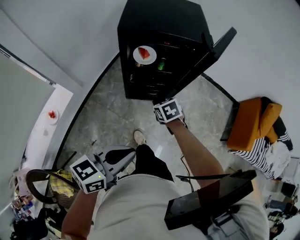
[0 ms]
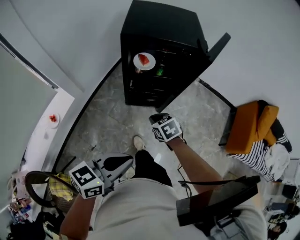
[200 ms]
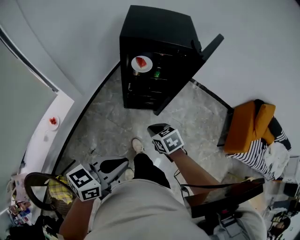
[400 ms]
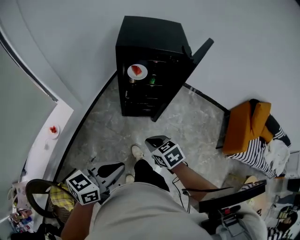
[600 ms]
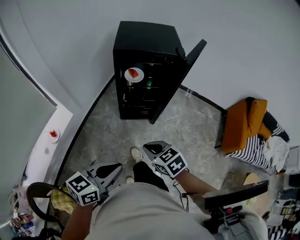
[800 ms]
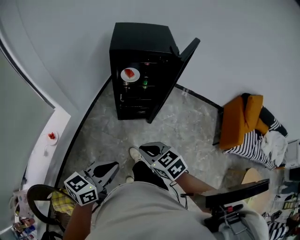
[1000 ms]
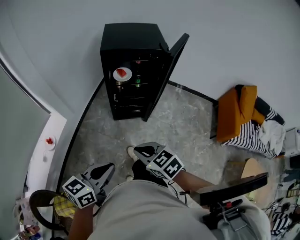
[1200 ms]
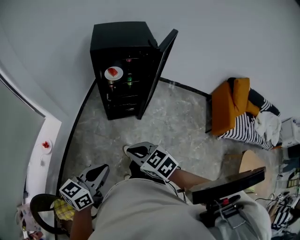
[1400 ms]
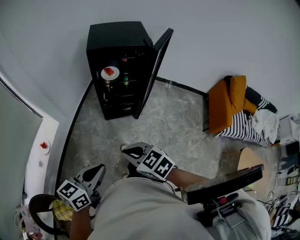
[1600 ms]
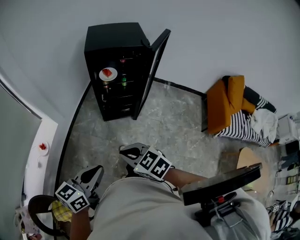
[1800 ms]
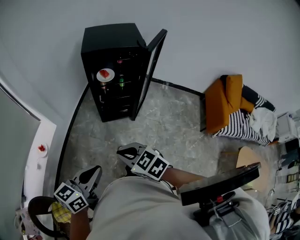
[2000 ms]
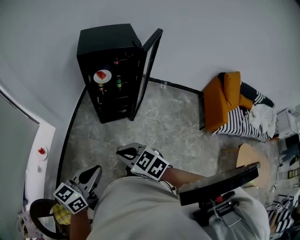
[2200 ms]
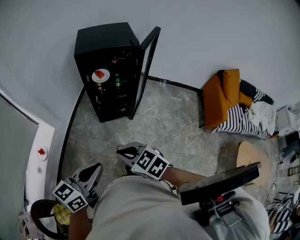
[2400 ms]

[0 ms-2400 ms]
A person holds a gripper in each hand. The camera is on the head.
0 ms to 1200 ms: The left gripper moves about 15 cm.

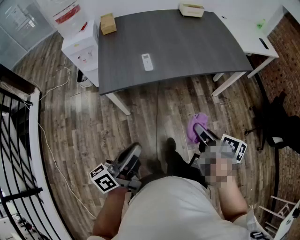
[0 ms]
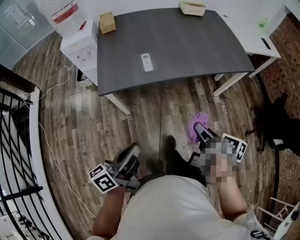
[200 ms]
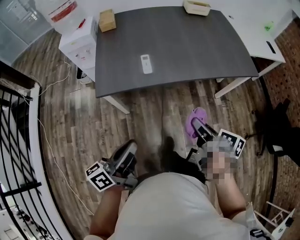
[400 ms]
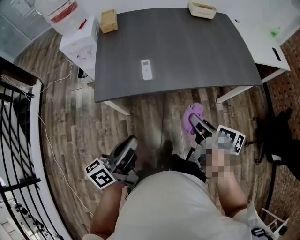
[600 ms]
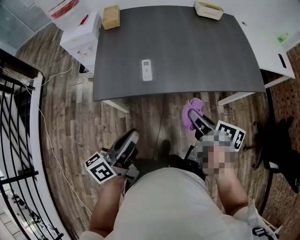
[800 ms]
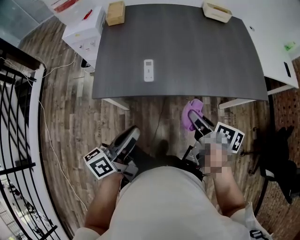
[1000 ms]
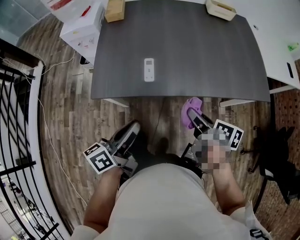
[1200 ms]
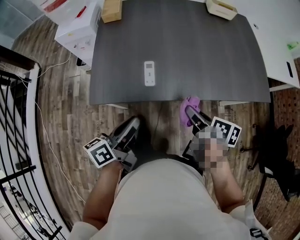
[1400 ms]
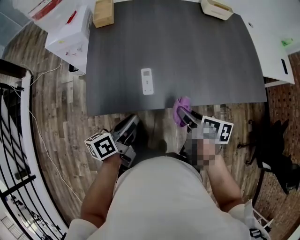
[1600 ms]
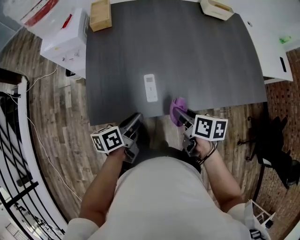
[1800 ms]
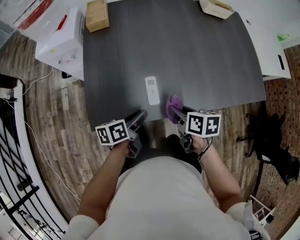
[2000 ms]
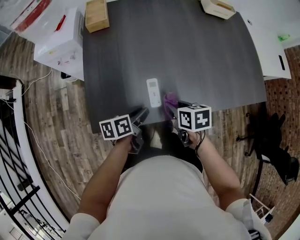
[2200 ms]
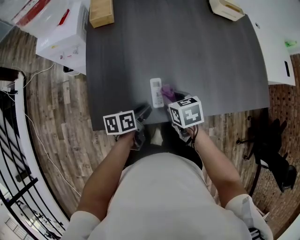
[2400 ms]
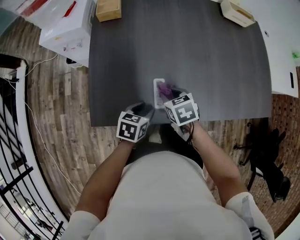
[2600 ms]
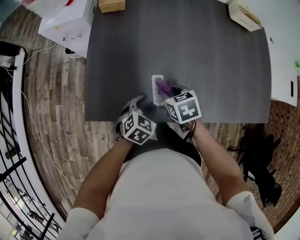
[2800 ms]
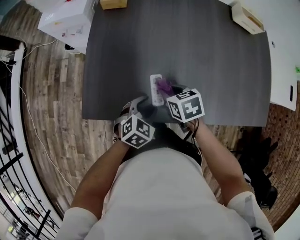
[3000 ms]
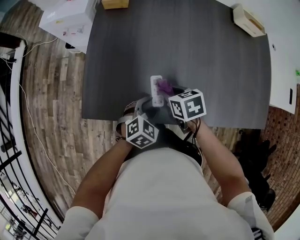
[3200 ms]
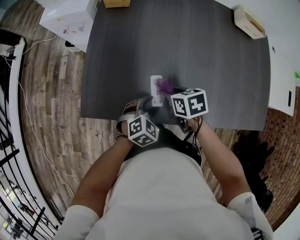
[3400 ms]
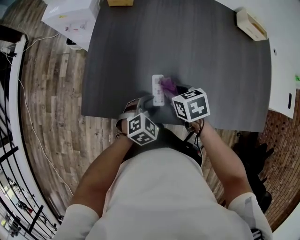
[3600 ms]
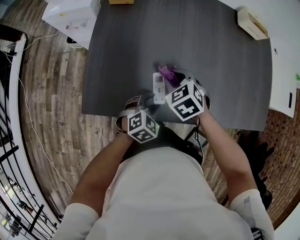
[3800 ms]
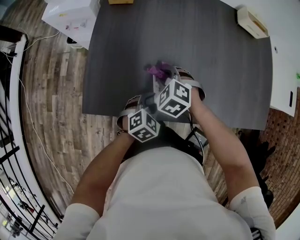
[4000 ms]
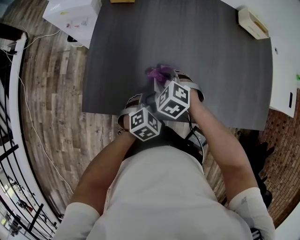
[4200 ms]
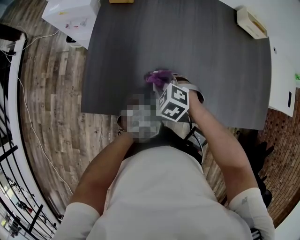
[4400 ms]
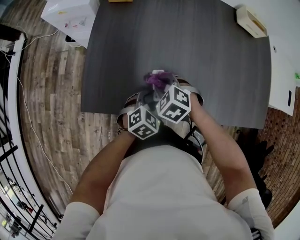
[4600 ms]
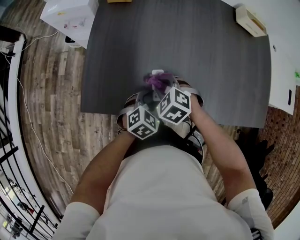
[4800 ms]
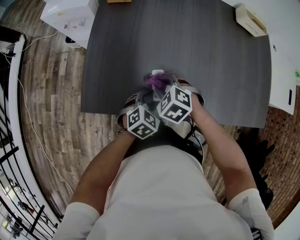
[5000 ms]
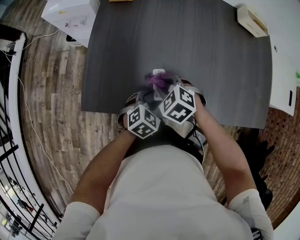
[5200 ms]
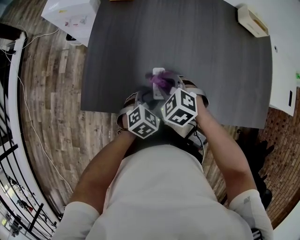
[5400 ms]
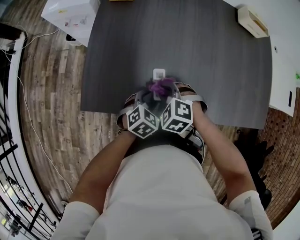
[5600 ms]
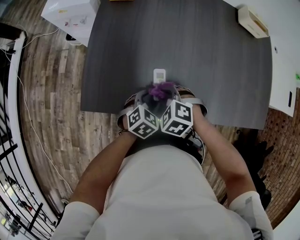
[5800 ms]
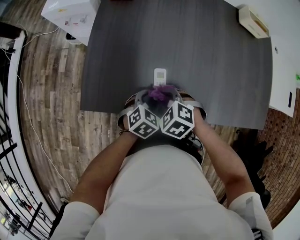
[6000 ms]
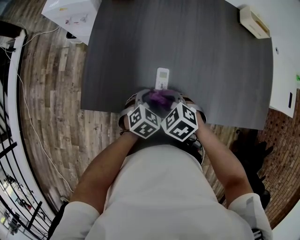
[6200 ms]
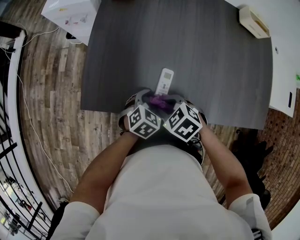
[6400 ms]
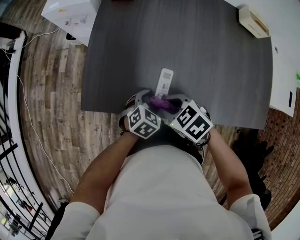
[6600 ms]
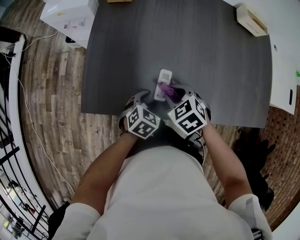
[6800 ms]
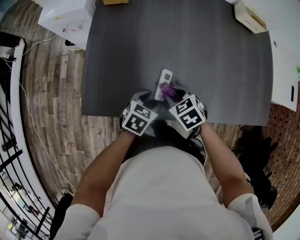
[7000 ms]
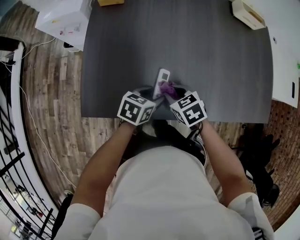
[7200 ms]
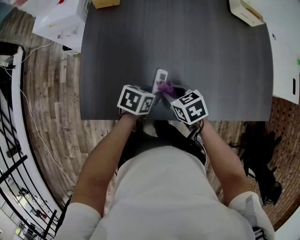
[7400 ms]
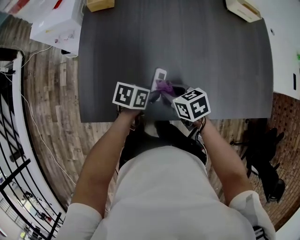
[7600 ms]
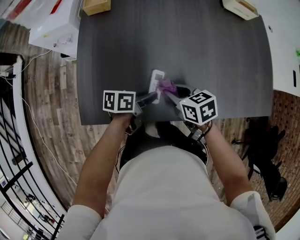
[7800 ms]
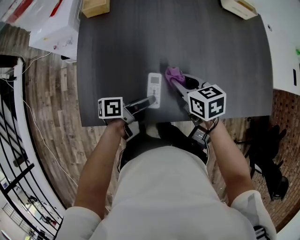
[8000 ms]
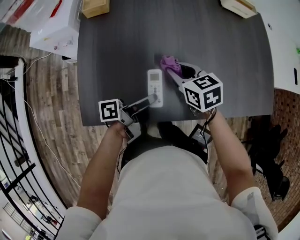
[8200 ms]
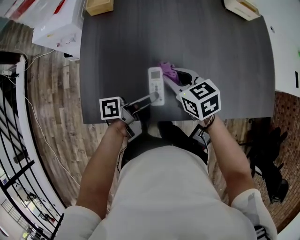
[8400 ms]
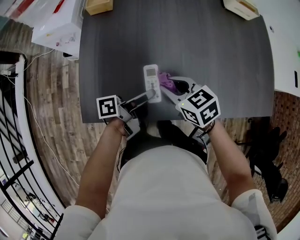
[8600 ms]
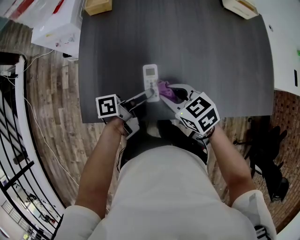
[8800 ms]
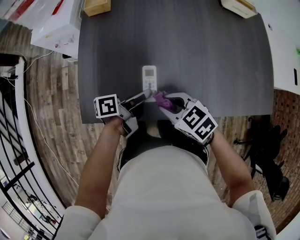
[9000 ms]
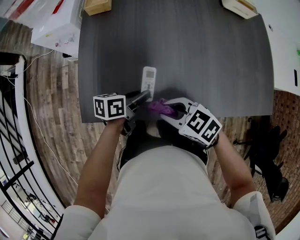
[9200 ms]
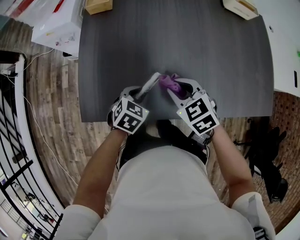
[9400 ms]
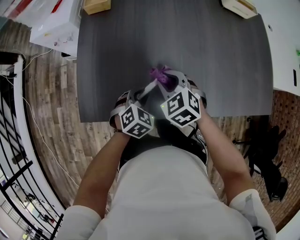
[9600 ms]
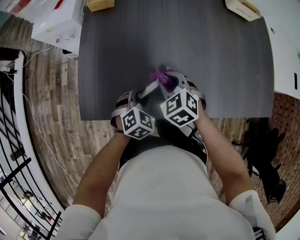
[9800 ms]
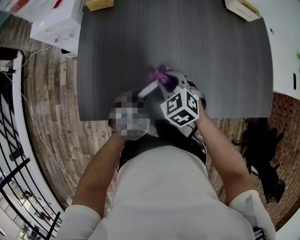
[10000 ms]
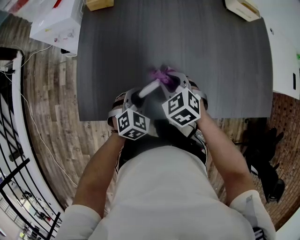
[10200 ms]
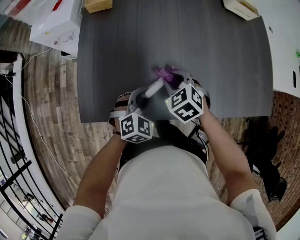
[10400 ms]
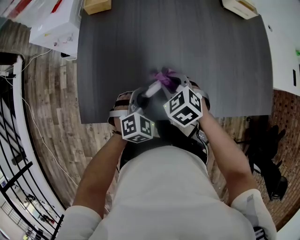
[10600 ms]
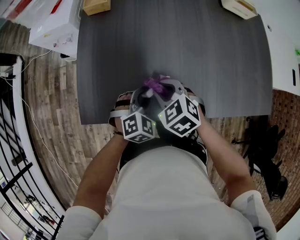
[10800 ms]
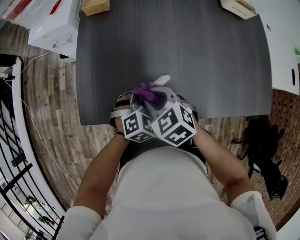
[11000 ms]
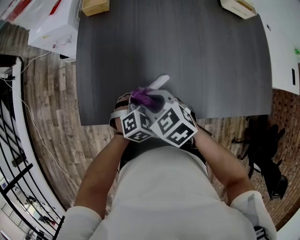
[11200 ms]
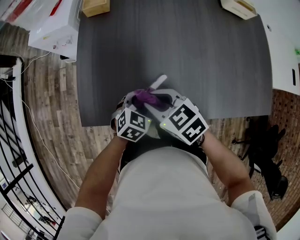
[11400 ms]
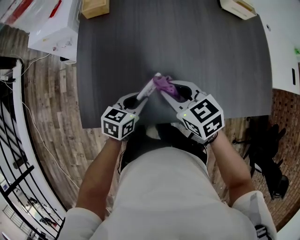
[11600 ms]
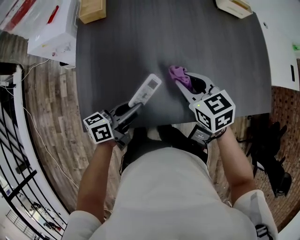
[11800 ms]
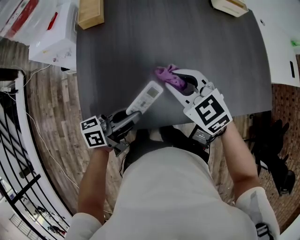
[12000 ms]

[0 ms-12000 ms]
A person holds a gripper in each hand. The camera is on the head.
0 ms to 1600 ms: The grippers both shift forward by about 30 cm. The left gripper swivels about 20 degrees.
1600 ms to 3000 ms: The right gripper heads forward, to the left and downward, covering roughly 20 cm, and twists roughly 40 degrees counterclockwise, seen from behind; the left gripper goes about 15 cm downward, forward and to the right, rotates around the line of its fingers by approximately 60 degrees, clockwise from behind, and opens up.
3000 ms to 4400 ms: The right gripper rolls counterclockwise, seen from behind, by some 50 degrees.
4400 ms to 6000 ms: The right gripper moves backward, roughly 5 cm.
6000 ms to 7600 ms: The left gripper rotates about 50 degrees, and closes up. The right gripper moves about 5 cm, and twists some 50 degrees clockwise, seen from behind.
7600 ms to 9000 ms: Both grippers travel together upward, some 5 cm. The right gripper swivels approximately 20 degrees. The left gripper points its fingers some 30 degrees further upward.
9000 ms to 10400 ms: The left gripper twists approximately 100 degrees clockwise, seen from behind. The right gripper ends up roughly 10 cm from where it was, and rotates approximately 30 degrees.
10400 ms to 12000 ms: The grippers both shift upward by approximately 10 cm. The left gripper angles its fingers upward, by some 40 degrees; the right gripper turns by some 20 degrees.

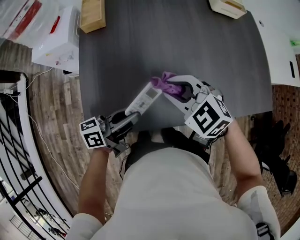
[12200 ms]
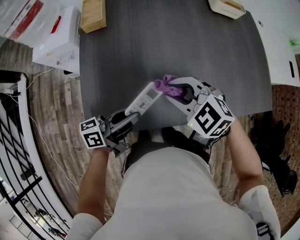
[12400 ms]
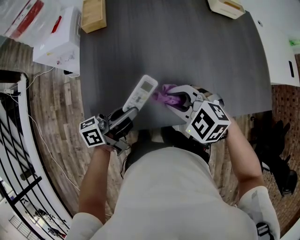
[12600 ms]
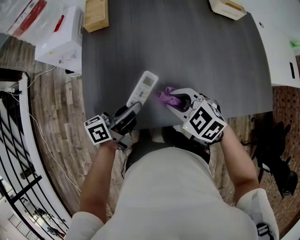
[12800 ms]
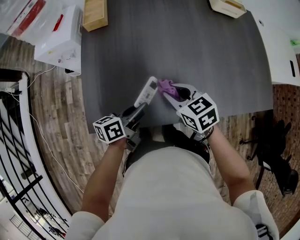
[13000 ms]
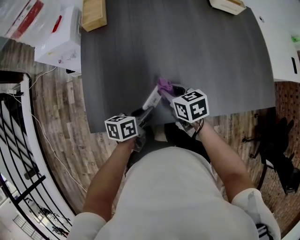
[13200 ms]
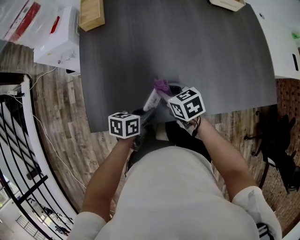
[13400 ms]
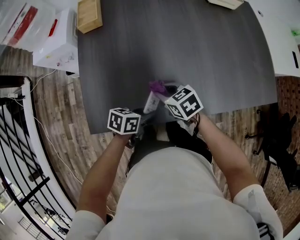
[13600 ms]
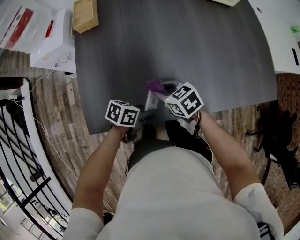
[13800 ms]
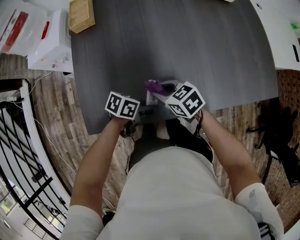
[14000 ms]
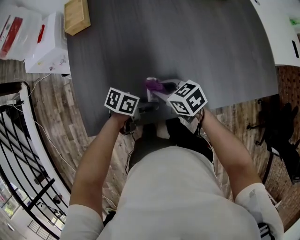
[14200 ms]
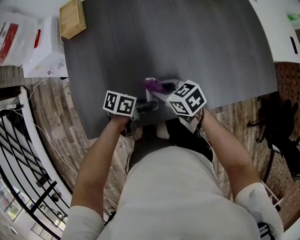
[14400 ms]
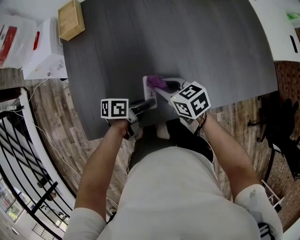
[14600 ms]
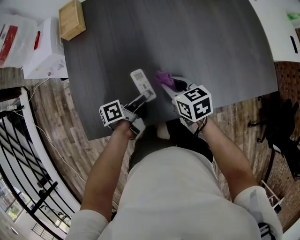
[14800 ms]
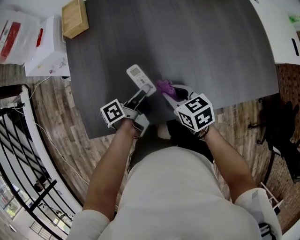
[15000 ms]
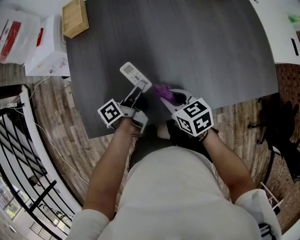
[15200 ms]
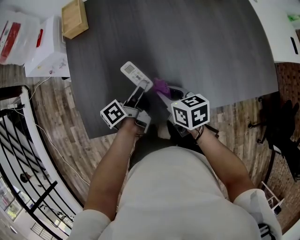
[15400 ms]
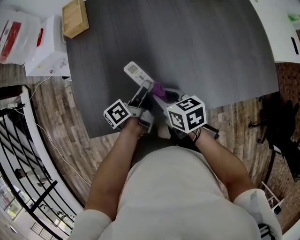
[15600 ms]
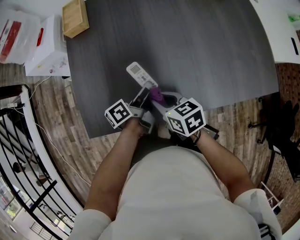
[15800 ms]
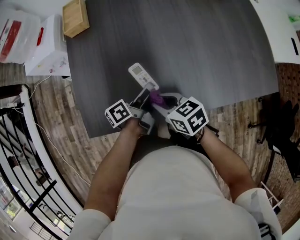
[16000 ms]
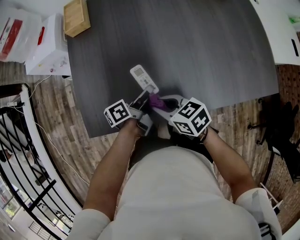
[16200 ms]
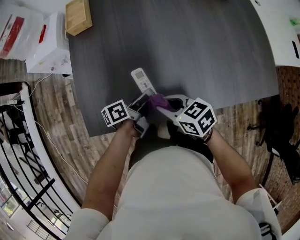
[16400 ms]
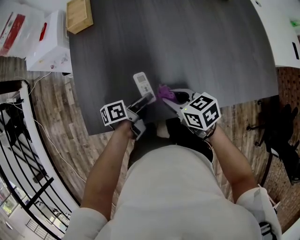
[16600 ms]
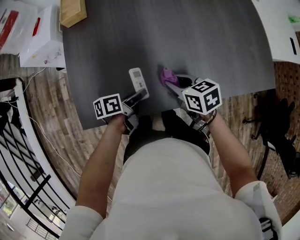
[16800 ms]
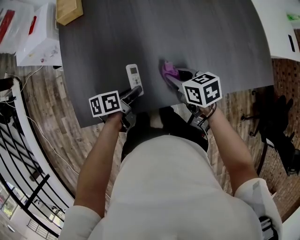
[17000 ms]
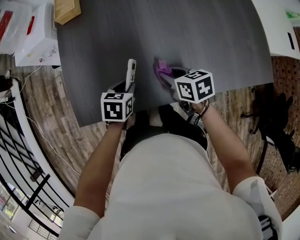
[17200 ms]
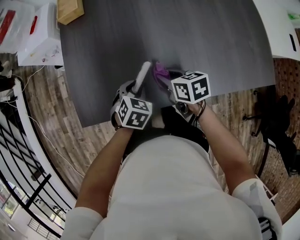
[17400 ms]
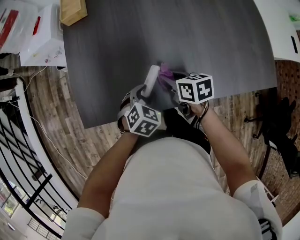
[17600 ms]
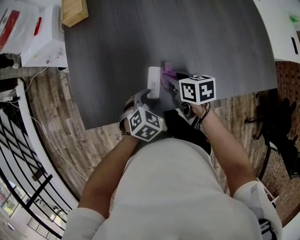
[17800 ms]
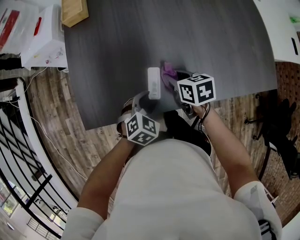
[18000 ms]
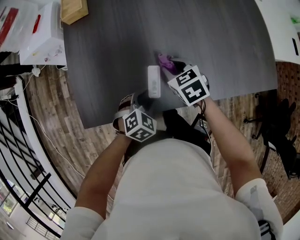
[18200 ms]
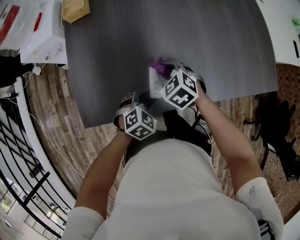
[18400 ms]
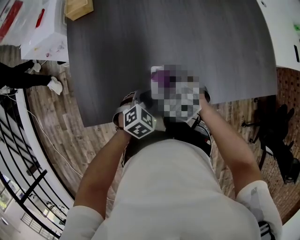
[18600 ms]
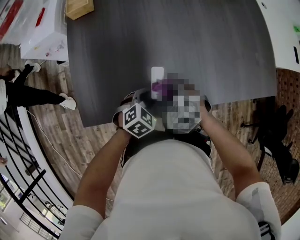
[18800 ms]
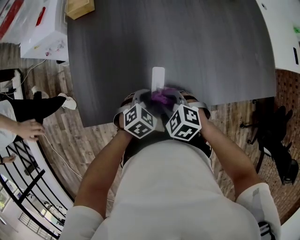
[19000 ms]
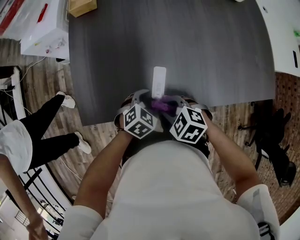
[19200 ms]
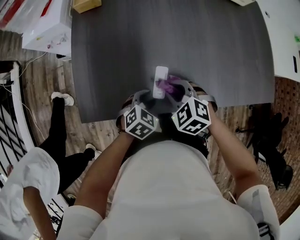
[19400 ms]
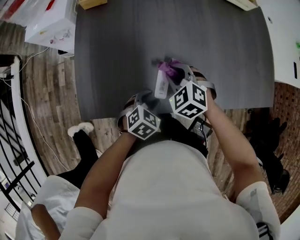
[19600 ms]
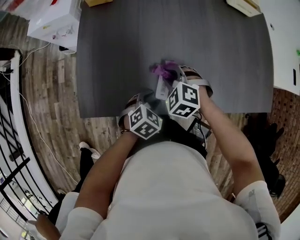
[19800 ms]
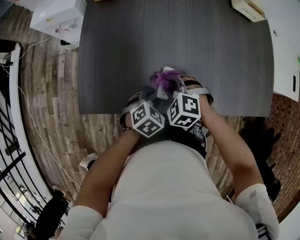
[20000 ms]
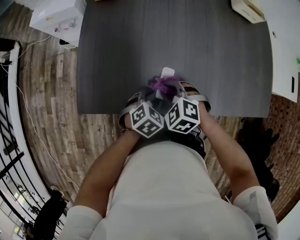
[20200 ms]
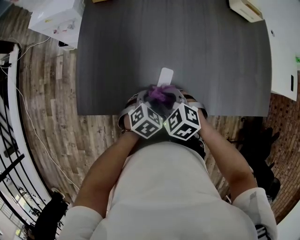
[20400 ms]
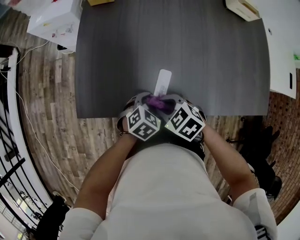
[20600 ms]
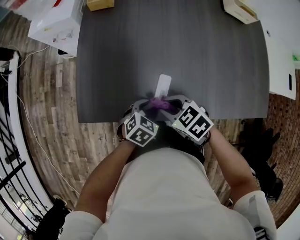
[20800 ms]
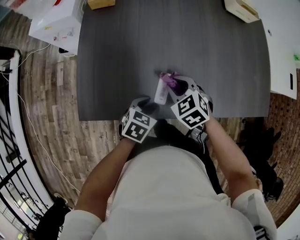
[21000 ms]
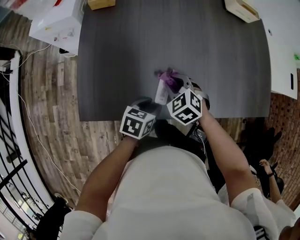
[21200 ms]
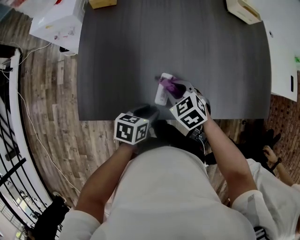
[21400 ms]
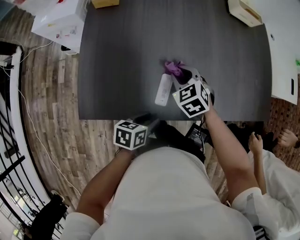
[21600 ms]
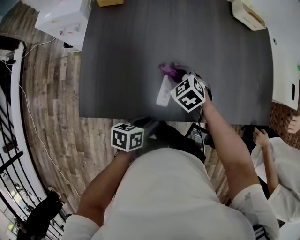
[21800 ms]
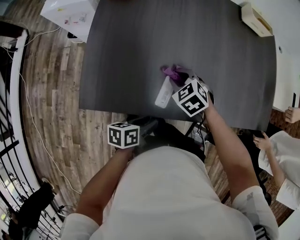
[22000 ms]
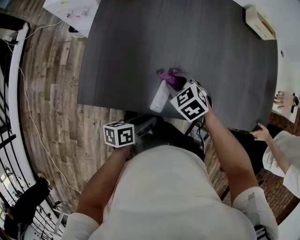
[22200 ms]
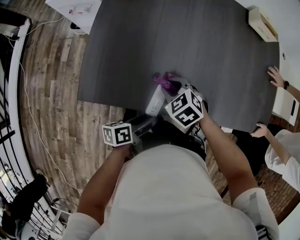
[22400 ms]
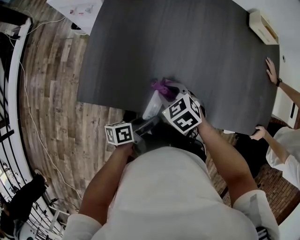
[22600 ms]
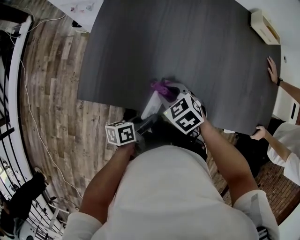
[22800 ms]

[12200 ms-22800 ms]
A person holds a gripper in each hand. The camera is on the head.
12200 ms to 13800 ms: Both grippers travel together downward, approximately 15 cm. The left gripper angles its fingers downward, by some 40 degrees, while the right gripper twists roughly 40 degrees clockwise, seen from behind.
13800 ms to 15200 ms: The right gripper ends up about 5 cm from where it was. Meanwhile the left gripper ends up approximately 15 cm from where it was, and swivels some 60 degrees.
15200 ms to 16800 ms: The left gripper shifts about 10 cm backward and downward, and rotates approximately 30 degrees.
16800 ms to 18200 ms: The right gripper heads forward, covering some 5 cm, and rotates some 20 degrees; the left gripper twists about 80 degrees clockwise, seen from behind.
18200 ms to 19800 ms: The right gripper rolls counterclockwise, seen from behind, by about 50 degrees.
19800 ms to 21200 ms: The left gripper rotates about 40 degrees.
21200 ms to 22800 ms: The left gripper shifts by about 10 cm, and rolls counterclockwise, seen from behind, by about 40 degrees; the right gripper shifts by some 10 cm, and turns by roughly 20 degrees.
